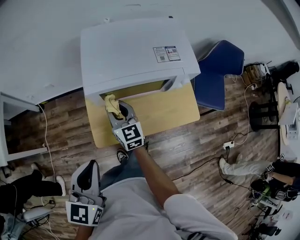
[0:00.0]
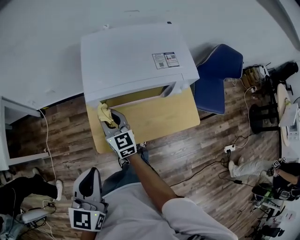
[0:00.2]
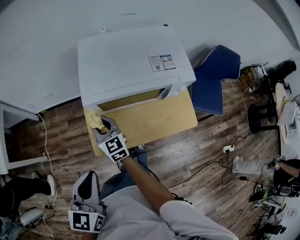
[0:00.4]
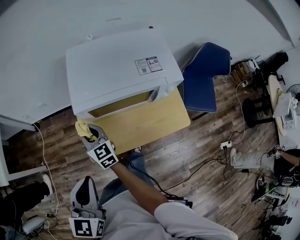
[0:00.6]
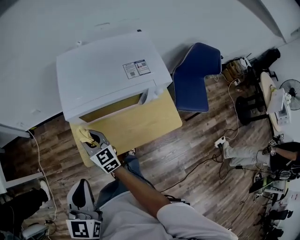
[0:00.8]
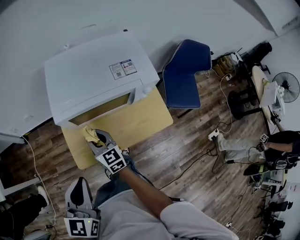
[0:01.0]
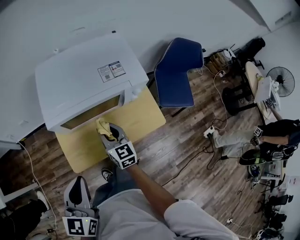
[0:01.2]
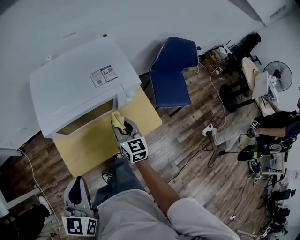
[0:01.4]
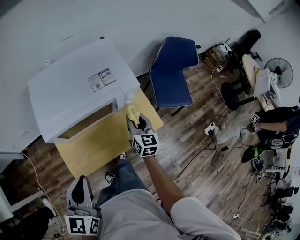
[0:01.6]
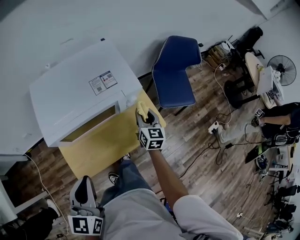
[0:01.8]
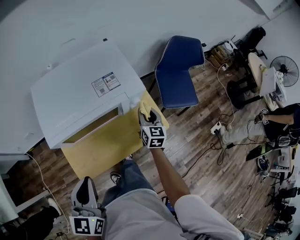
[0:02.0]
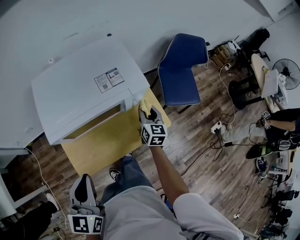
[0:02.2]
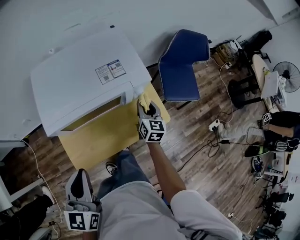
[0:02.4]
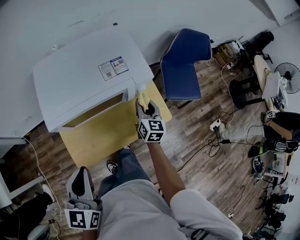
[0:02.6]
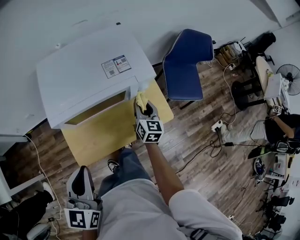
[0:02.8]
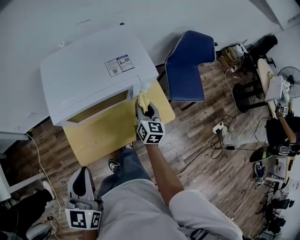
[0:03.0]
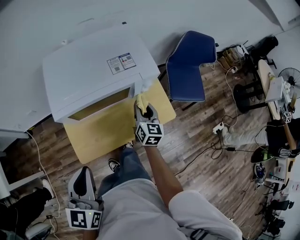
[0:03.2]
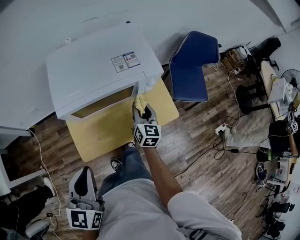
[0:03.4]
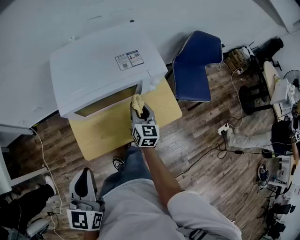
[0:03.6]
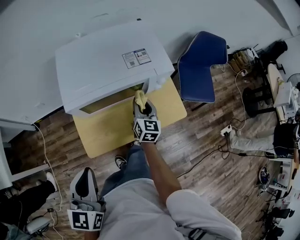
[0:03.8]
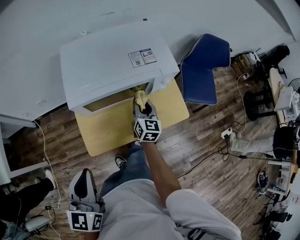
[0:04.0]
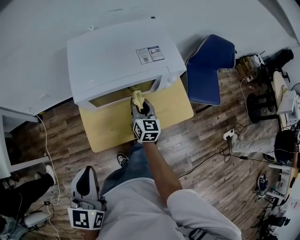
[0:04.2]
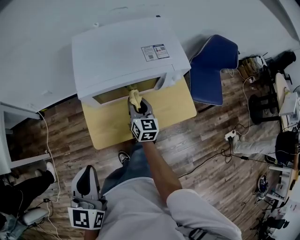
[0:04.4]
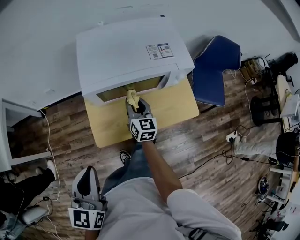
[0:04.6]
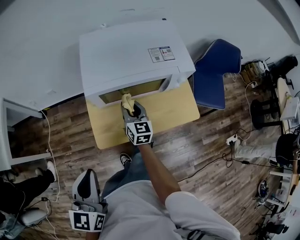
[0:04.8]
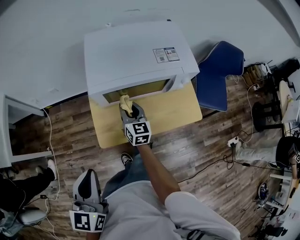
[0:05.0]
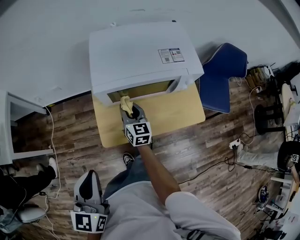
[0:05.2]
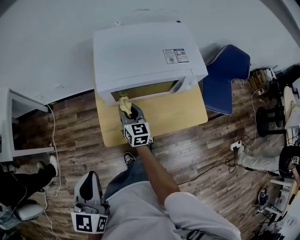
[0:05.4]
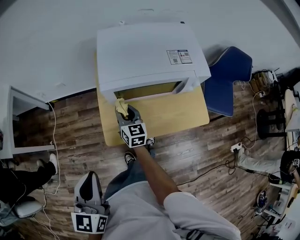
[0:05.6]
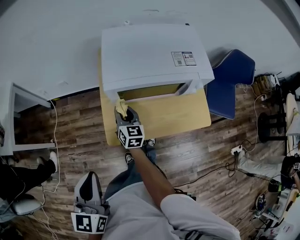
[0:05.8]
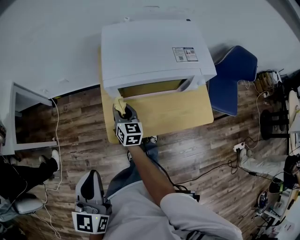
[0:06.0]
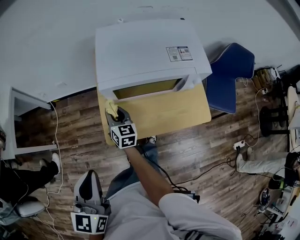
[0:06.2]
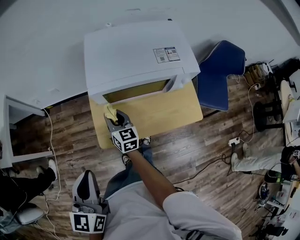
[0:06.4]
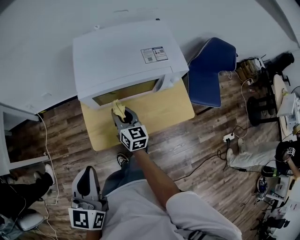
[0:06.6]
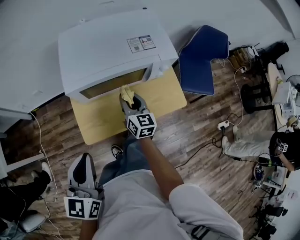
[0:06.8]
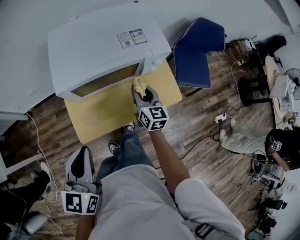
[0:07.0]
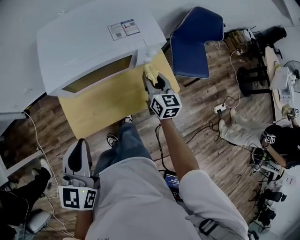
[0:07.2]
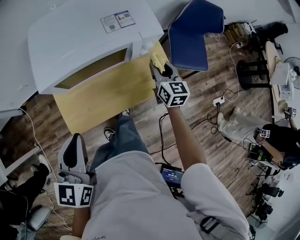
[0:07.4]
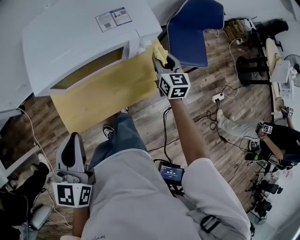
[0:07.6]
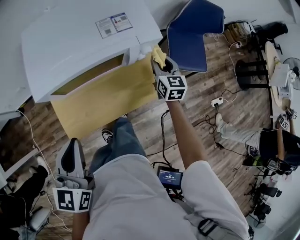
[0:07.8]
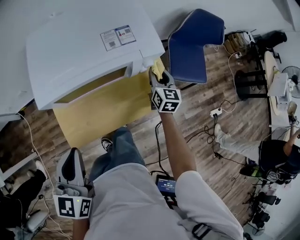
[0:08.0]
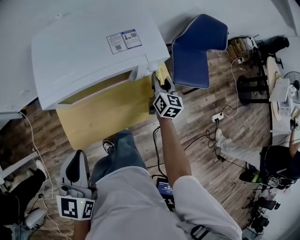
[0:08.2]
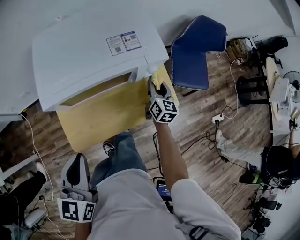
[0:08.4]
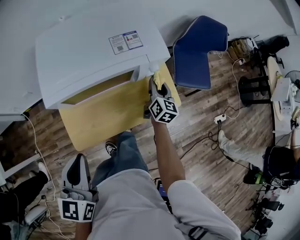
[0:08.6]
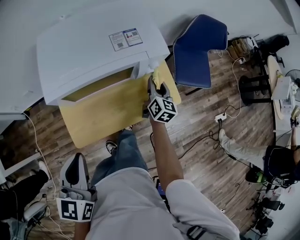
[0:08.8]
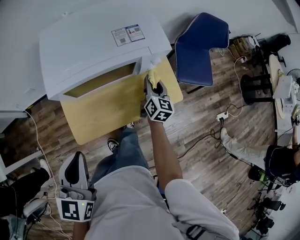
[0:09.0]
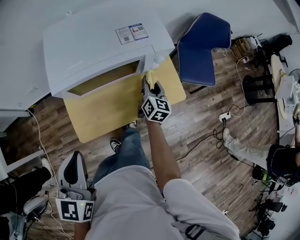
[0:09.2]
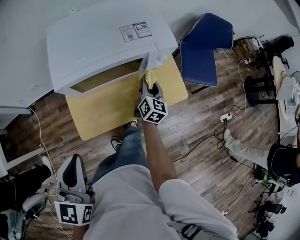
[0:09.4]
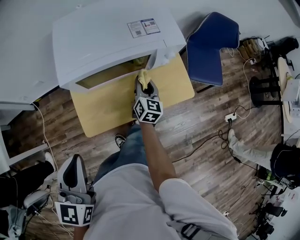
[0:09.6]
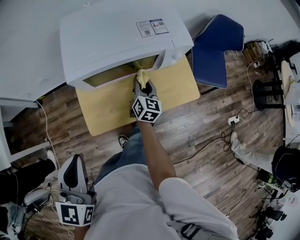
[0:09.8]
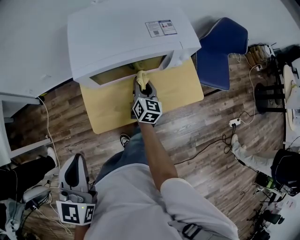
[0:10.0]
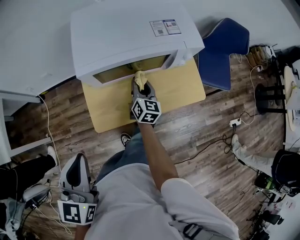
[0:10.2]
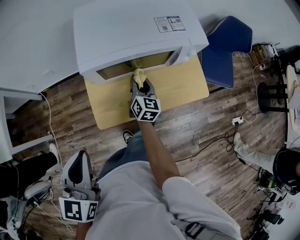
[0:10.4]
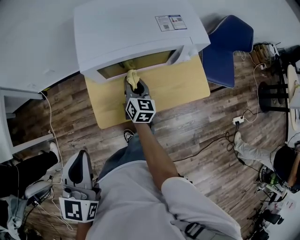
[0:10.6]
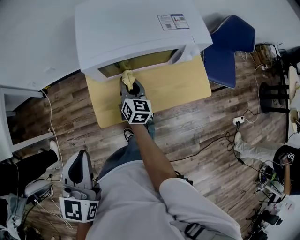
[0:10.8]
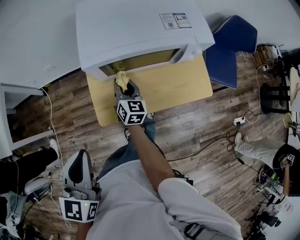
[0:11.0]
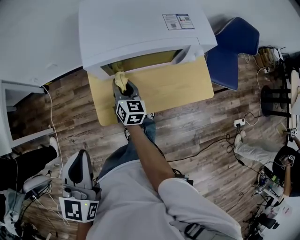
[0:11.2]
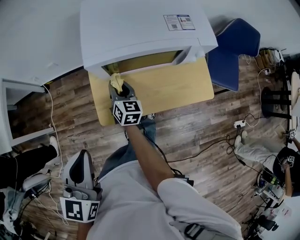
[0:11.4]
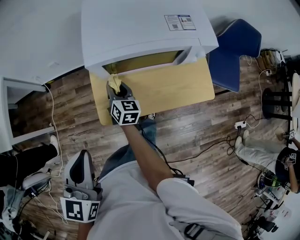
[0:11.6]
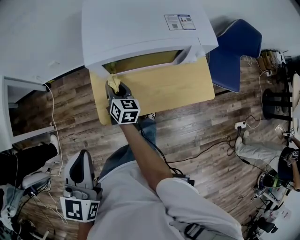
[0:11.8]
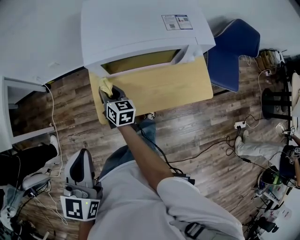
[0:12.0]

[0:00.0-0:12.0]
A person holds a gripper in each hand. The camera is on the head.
0:00.0 to 0:01.6: The left gripper shifts by about 10 cm; the right gripper moves about 30 cm, and turns by approximately 30 degrees.
0:03.0 to 0:04.4: The right gripper shifts roughly 15 cm to the left, while the left gripper goes roughly 10 cm backward and to the left.
0:04.4 to 0:06.0: The left gripper shifts roughly 5 cm to the left. Meanwhile the right gripper is displaced to the left by about 20 cm.
0:06.0 to 0:07.6: The right gripper is displaced to the right by some 40 cm, and swivels roughly 30 degrees. Meanwhile the left gripper travels to the right and forward by approximately 20 cm.
0:07.6 to 0:09.0: The right gripper moves to the left, some 5 cm, and rotates approximately 20 degrees.
0:09.0 to 0:10.4: The right gripper is displaced to the left by approximately 20 cm. The left gripper moves to the left and backward, some 10 cm.
0:10.4 to 0:12.0: The right gripper goes approximately 15 cm to the left, and swivels approximately 30 degrees.

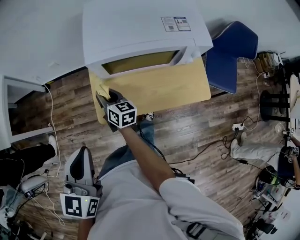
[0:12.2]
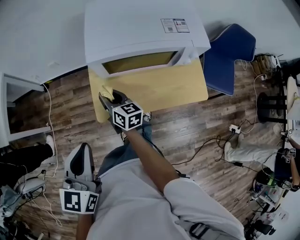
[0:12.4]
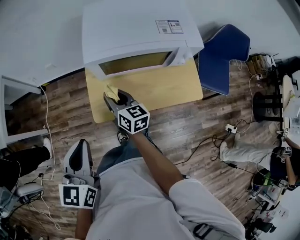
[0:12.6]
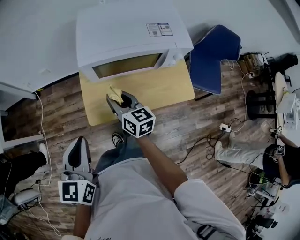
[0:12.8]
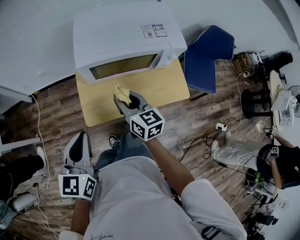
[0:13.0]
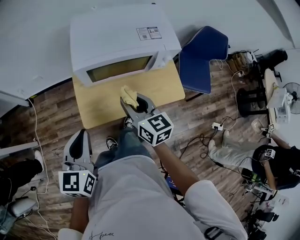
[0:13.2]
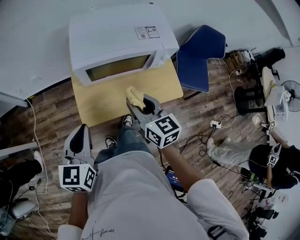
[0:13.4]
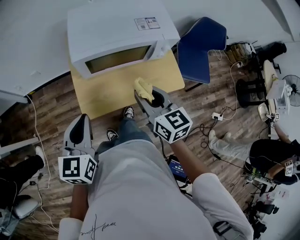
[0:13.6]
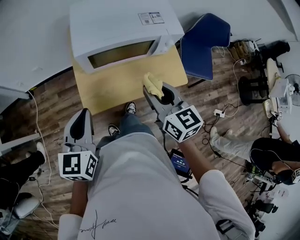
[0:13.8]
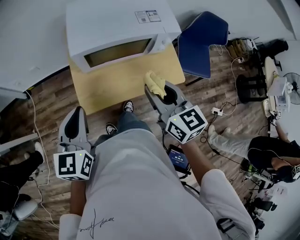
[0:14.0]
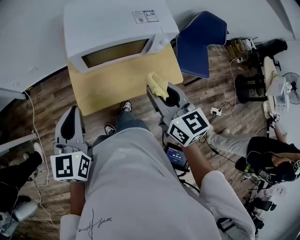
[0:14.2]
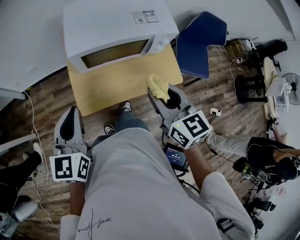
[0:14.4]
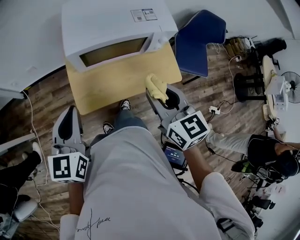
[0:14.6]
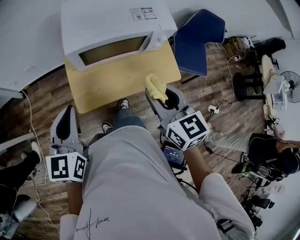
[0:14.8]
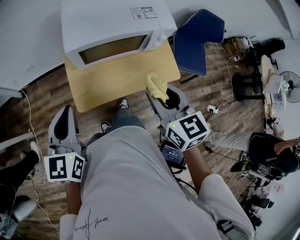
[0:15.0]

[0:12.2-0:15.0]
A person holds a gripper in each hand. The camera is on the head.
0:12.2 to 0:13.6: The right gripper travels to the right, upward and backward by approximately 30 cm, and turns by about 30 degrees, while the left gripper shifts by roughly 5 cm.
0:13.6 to 0:15.0: The right gripper ends up some 5 cm from where it was.

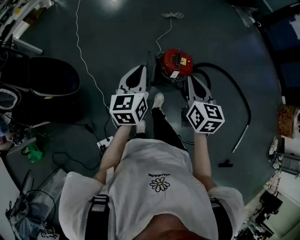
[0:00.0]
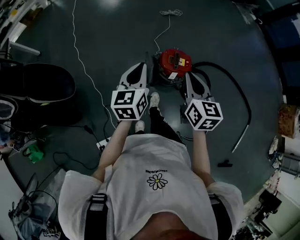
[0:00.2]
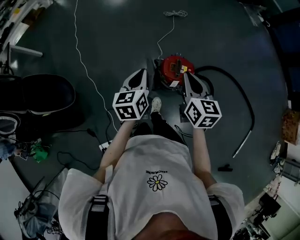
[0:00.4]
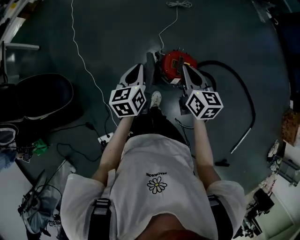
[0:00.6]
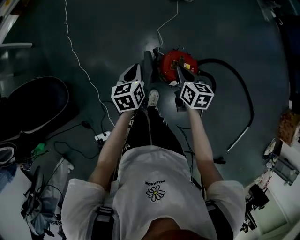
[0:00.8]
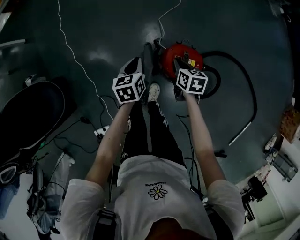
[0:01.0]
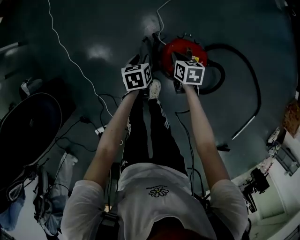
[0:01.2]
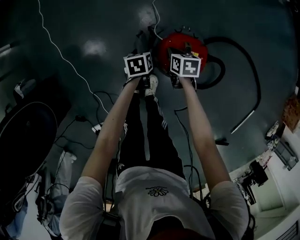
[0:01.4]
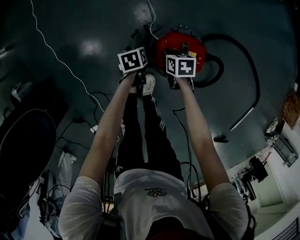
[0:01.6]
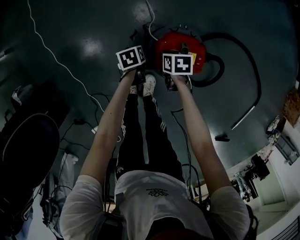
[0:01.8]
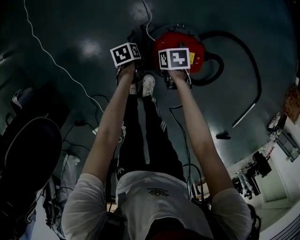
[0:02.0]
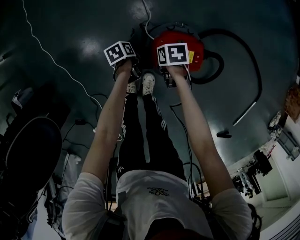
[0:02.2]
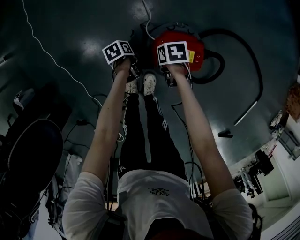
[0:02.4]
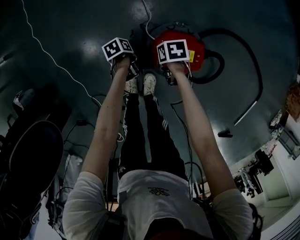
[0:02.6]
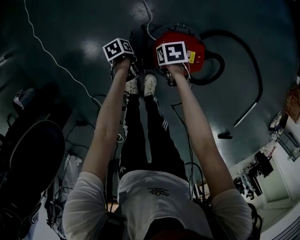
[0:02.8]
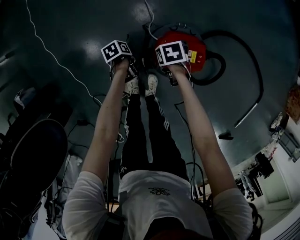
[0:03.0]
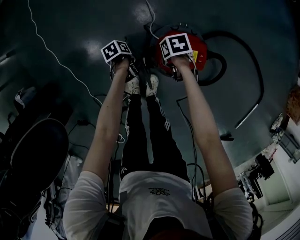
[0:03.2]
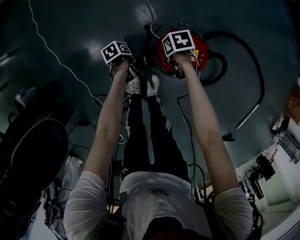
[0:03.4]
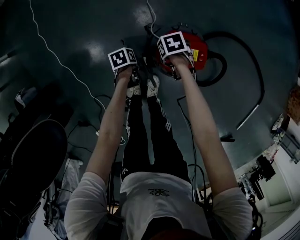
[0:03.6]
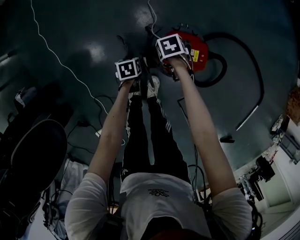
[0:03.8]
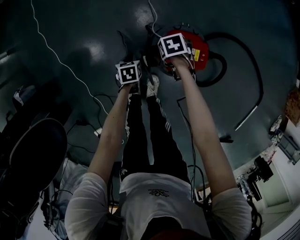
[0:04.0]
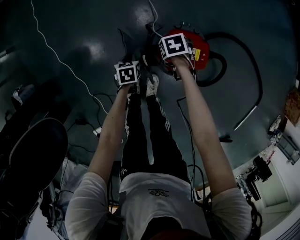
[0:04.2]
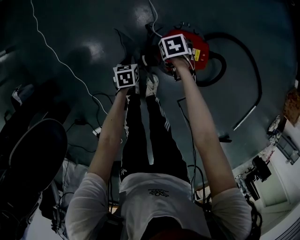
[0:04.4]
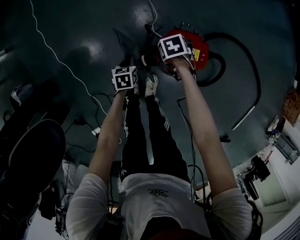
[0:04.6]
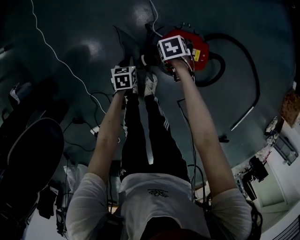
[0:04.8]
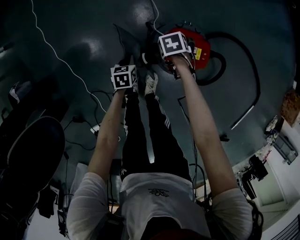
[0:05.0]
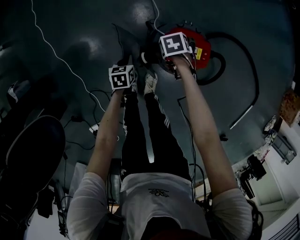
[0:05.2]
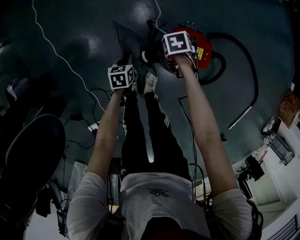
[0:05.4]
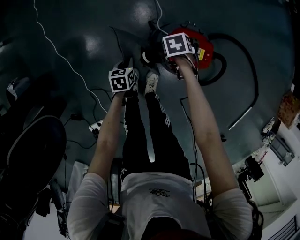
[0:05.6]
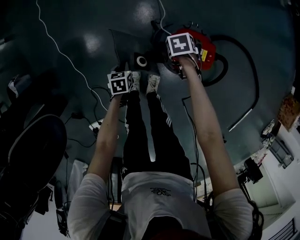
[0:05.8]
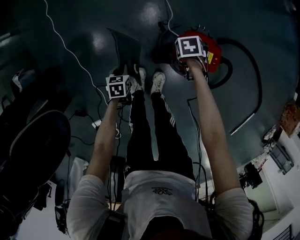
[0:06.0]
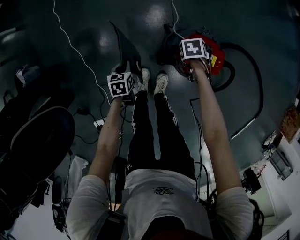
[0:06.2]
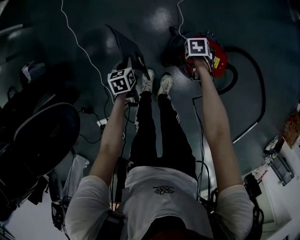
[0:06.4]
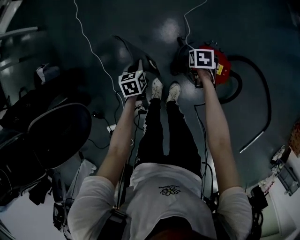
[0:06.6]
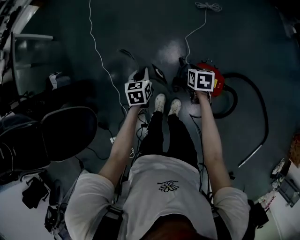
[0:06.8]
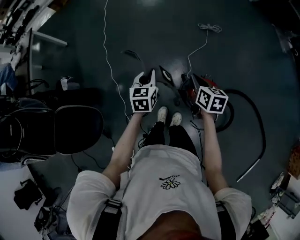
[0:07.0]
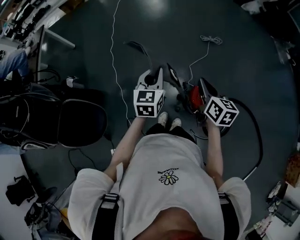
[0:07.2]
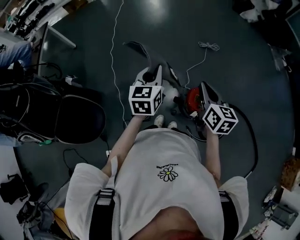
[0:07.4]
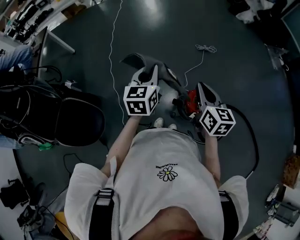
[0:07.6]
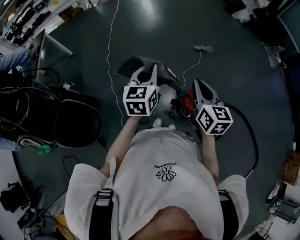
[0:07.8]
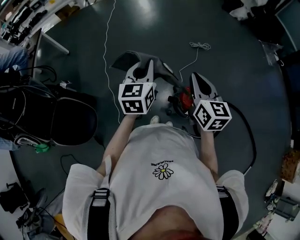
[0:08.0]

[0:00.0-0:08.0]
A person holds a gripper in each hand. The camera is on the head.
0:00.0 to 0:01.6: The left gripper travels downward by approximately 50 cm, tilts its fingers roughly 50 degrees downward, and opens up.
0:01.6 to 0:03.2: The left gripper travels downward by roughly 5 cm, changes its angle by some 30 degrees, and closes its fingers.
0:03.2 to 0:04.8: The left gripper changes place by some 5 cm, and rotates some 40 degrees.
0:04.8 to 0:06.4: The left gripper moves some 15 cm.
0:06.4 to 0:08.0: The left gripper goes some 60 cm upward, and tips its fingers upward by some 40 degrees.

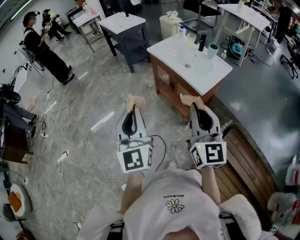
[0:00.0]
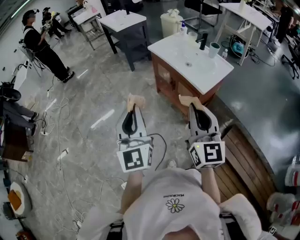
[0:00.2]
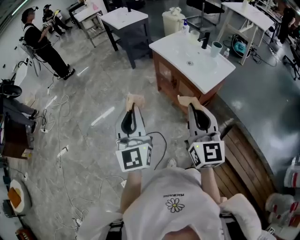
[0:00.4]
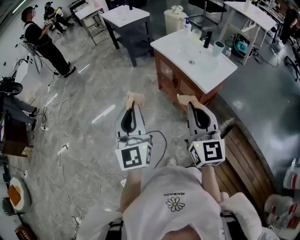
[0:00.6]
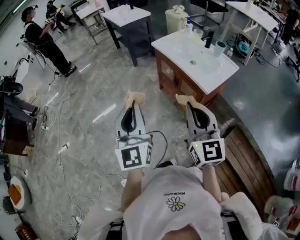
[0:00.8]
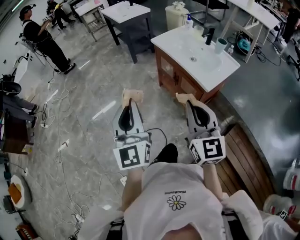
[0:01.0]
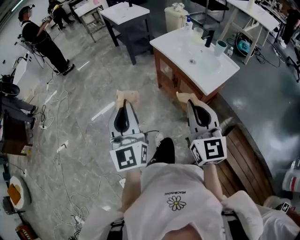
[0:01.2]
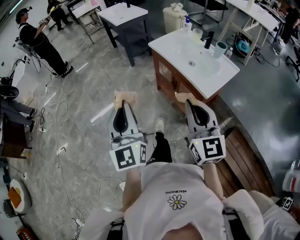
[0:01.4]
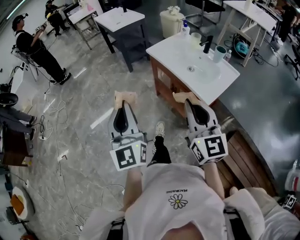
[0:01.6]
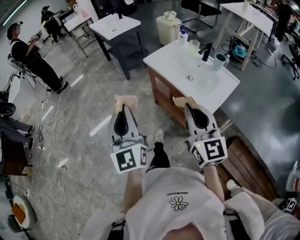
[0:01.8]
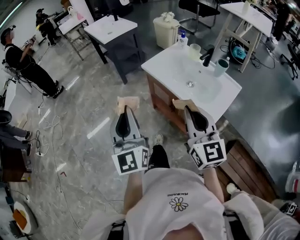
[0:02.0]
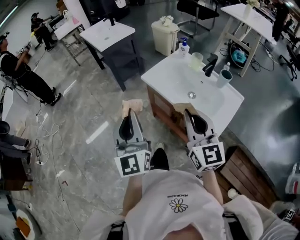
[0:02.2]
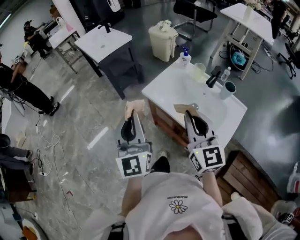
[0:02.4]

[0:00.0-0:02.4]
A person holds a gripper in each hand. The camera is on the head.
0:00.0 to 0:01.2: The left gripper moves some 5 cm. Meanwhile the right gripper is displaced forward by some 5 cm.
0:01.2 to 0:02.4: Both grippers move forward, roughly 40 cm.
